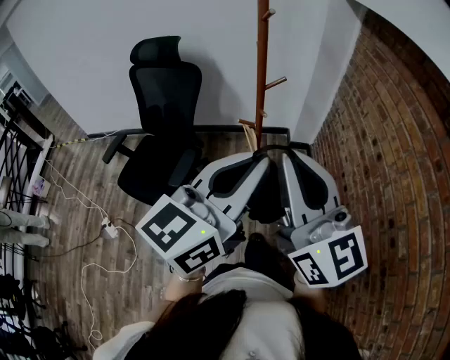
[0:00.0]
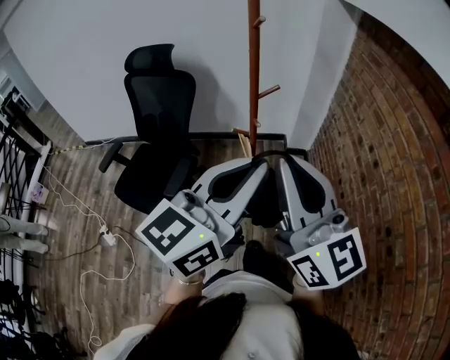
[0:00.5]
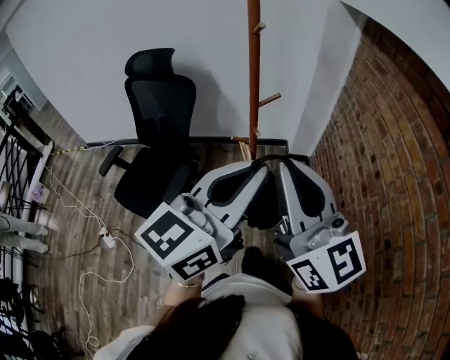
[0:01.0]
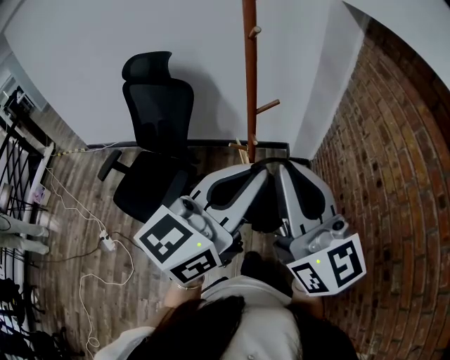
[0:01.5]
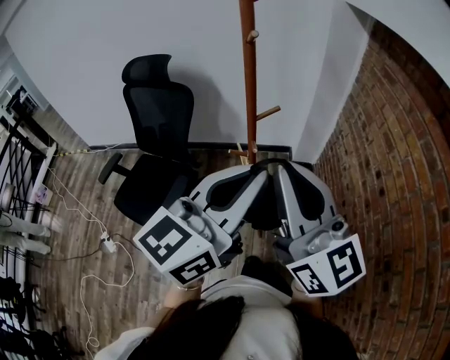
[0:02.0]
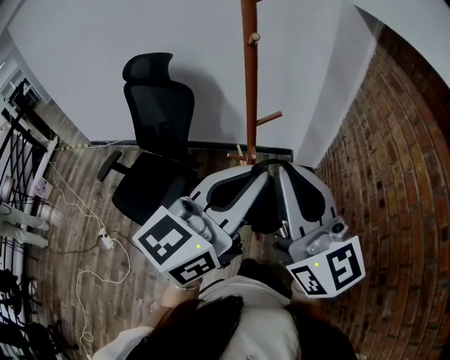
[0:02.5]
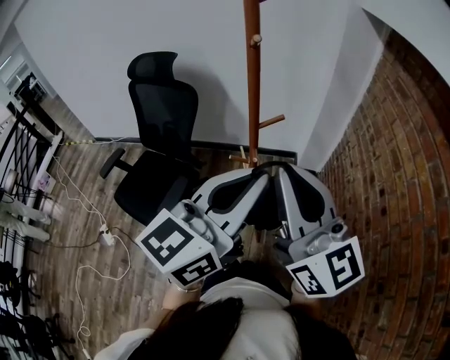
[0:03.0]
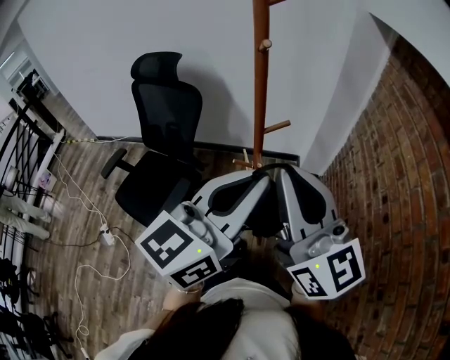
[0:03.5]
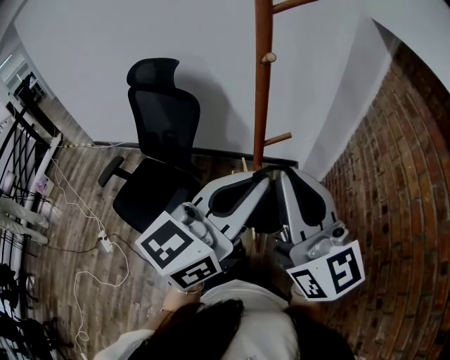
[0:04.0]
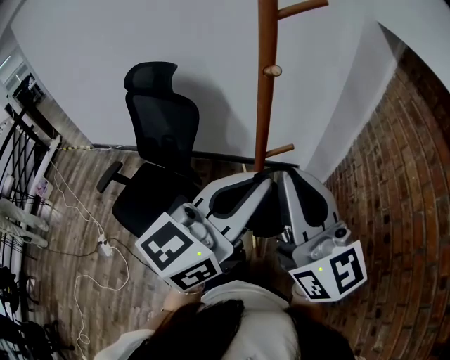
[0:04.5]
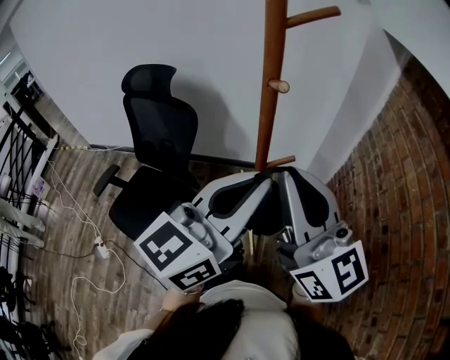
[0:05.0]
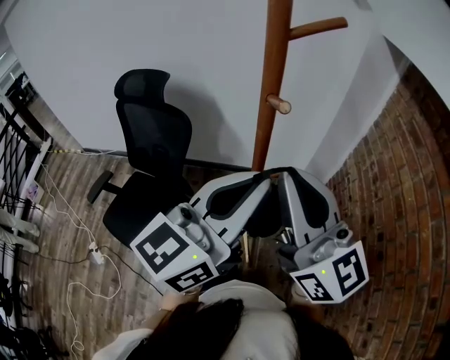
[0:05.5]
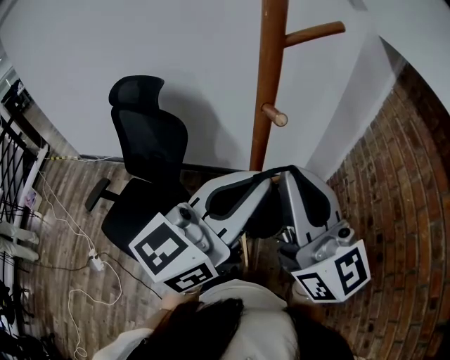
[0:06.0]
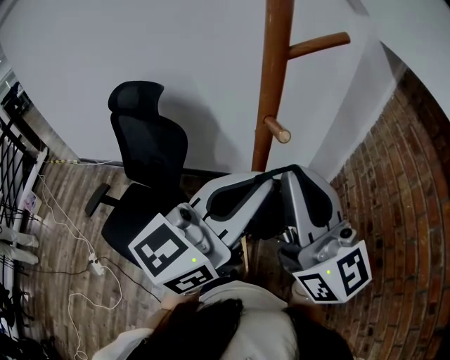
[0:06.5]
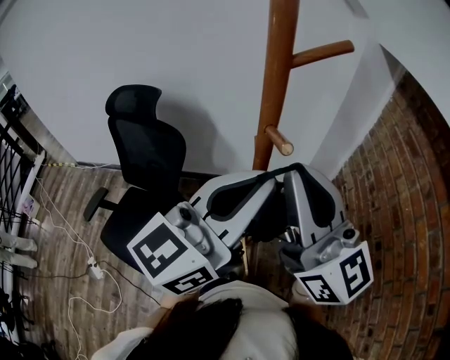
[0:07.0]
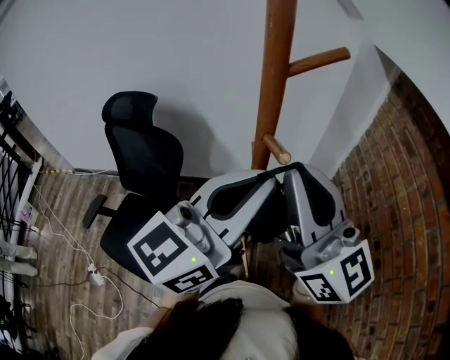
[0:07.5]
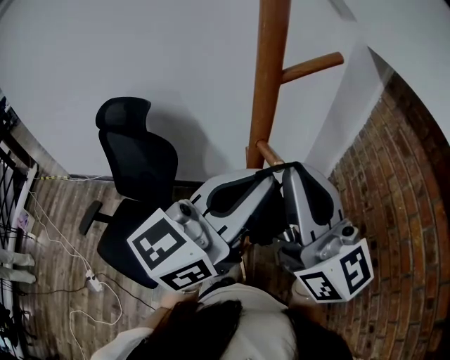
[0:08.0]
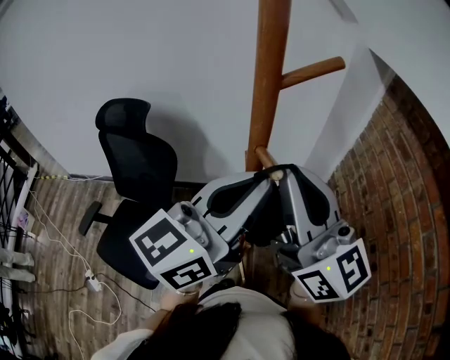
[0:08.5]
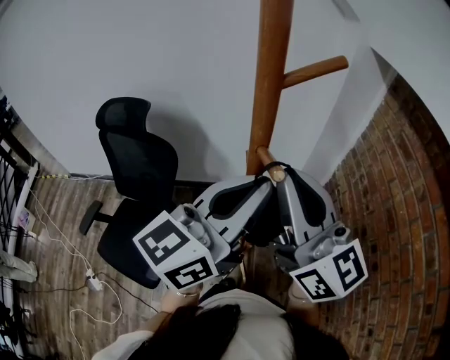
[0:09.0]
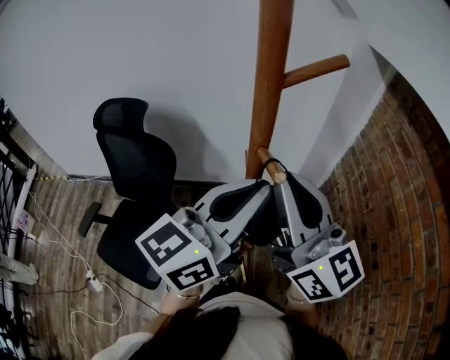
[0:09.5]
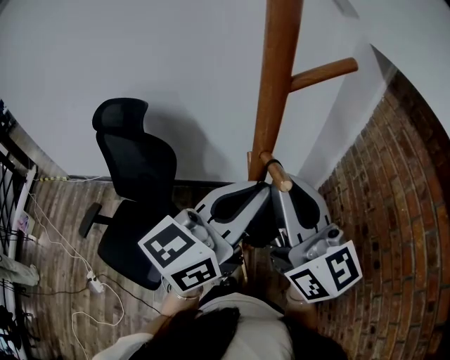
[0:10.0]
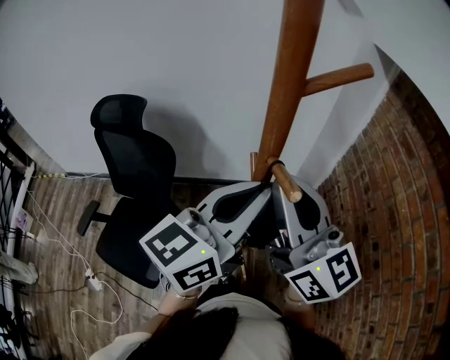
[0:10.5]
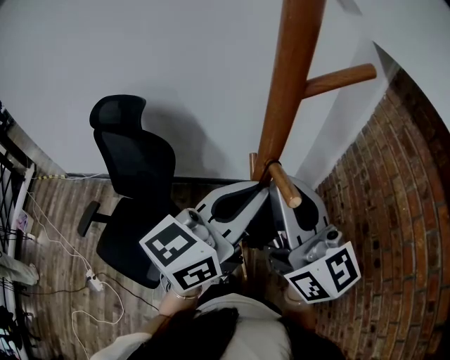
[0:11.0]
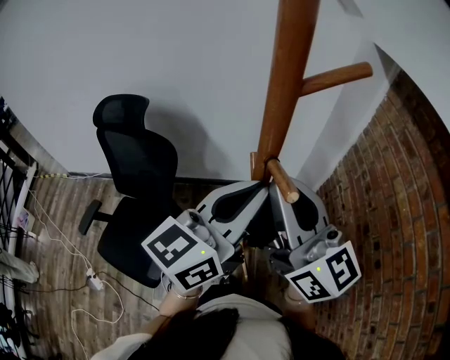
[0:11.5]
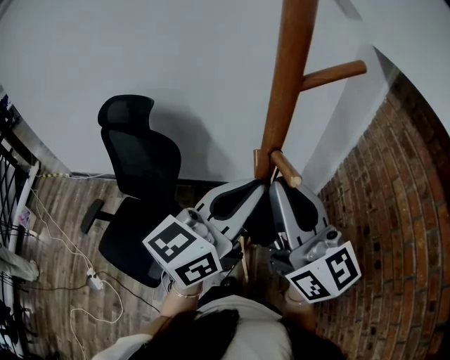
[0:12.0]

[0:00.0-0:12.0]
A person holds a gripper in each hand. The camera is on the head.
0:00.0 to 0:02.0: Both grippers move forward, some 10 cm.
0:02.0 to 0:04.0: The two grippers go about 10 cm forward.
0:04.0 to 0:06.0: Both grippers move forward, about 10 cm.
0:06.0 to 0:08.0: The left gripper ends up some 5 cm from where it was, while the right gripper changes place by roughly 5 cm.
0:08.0 to 0:10.0: The right gripper ends up roughly 5 cm from where it was. Meanwhile the left gripper shifts by some 5 cm.
0:10.0 to 0:12.0: There are only small adjustments of the grippers.

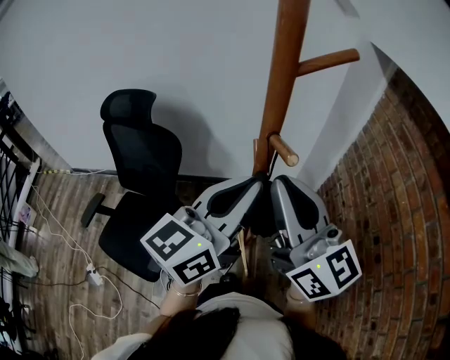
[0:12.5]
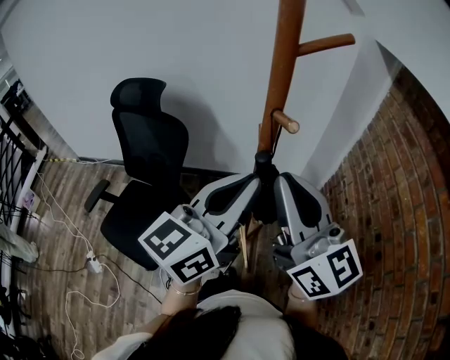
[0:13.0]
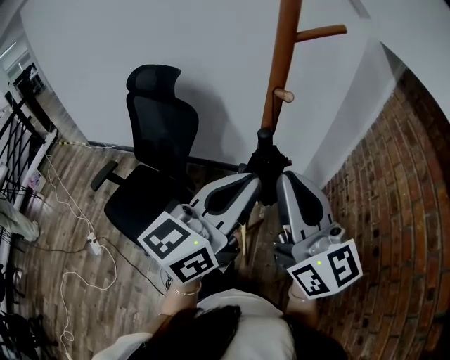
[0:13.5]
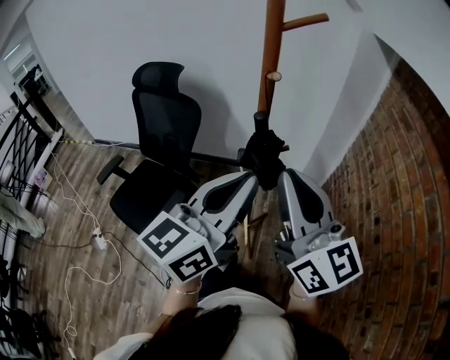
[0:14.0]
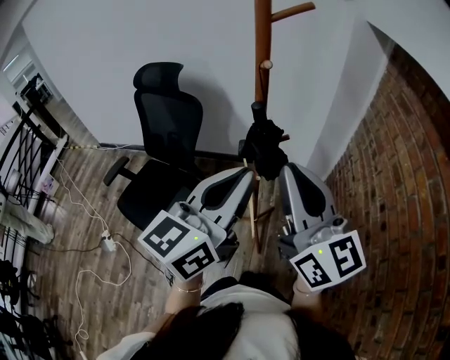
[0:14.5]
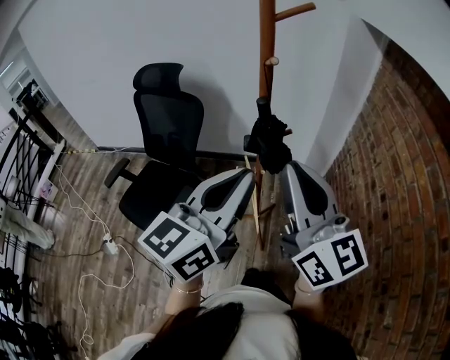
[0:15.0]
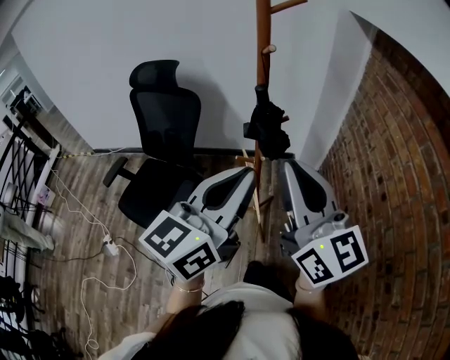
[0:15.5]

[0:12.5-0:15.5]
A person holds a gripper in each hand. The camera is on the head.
0:12.5 to 0:14.0: The two grippers go about 15 cm backward.
0:14.0 to 0:15.5: Both grippers move backward, approximately 10 cm.

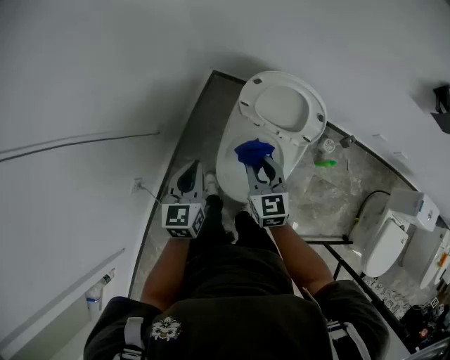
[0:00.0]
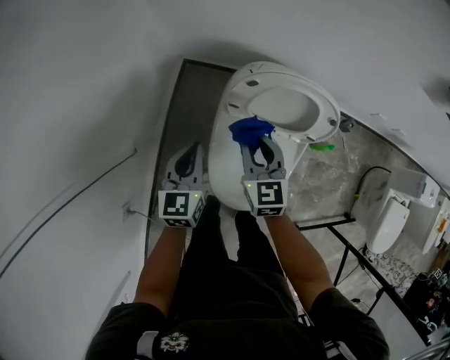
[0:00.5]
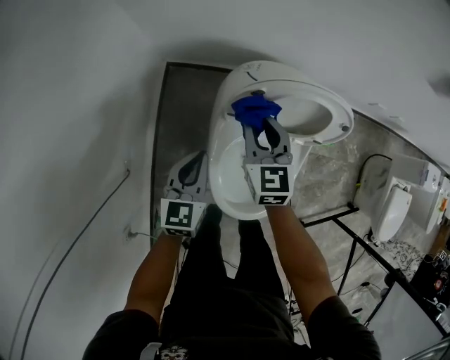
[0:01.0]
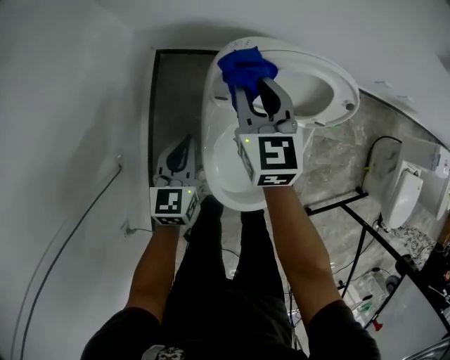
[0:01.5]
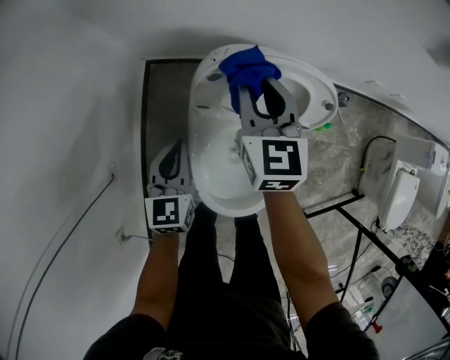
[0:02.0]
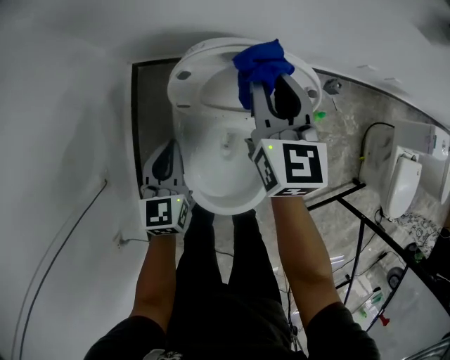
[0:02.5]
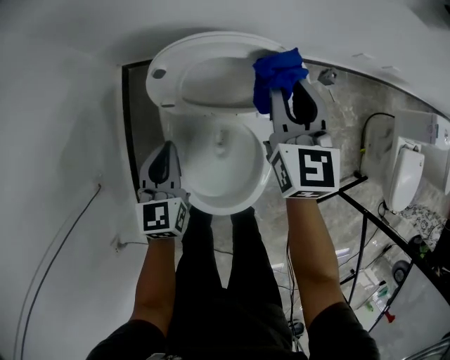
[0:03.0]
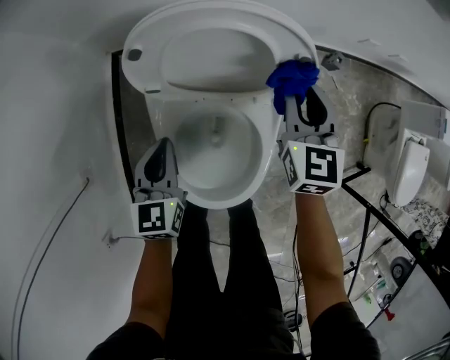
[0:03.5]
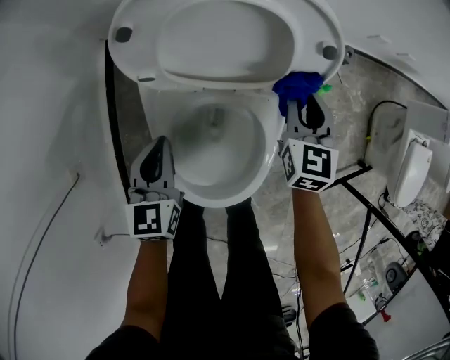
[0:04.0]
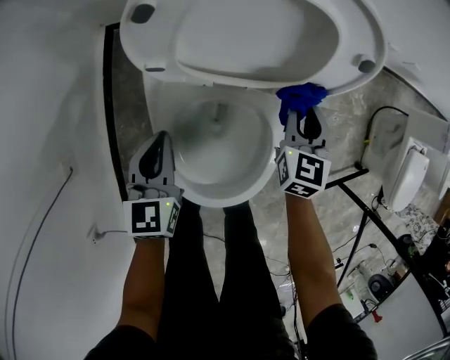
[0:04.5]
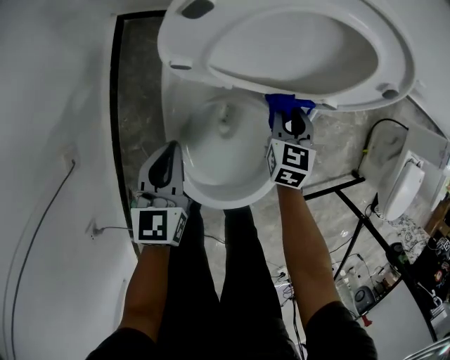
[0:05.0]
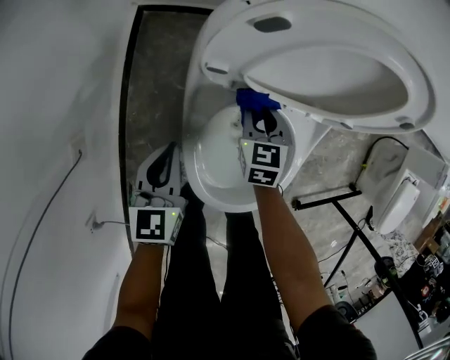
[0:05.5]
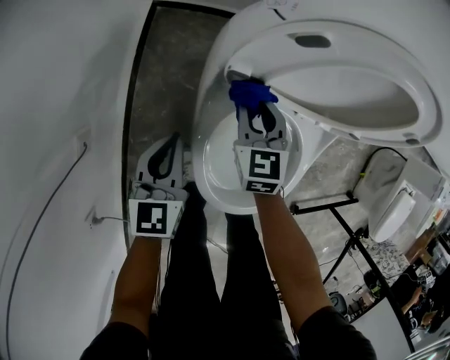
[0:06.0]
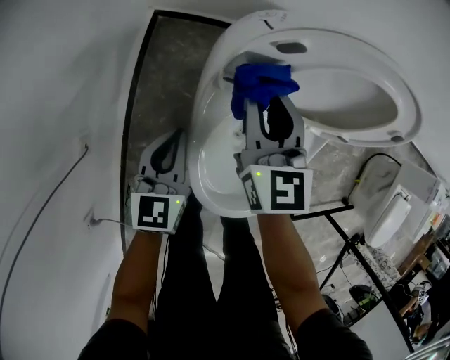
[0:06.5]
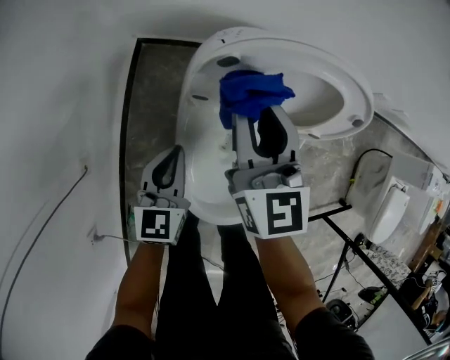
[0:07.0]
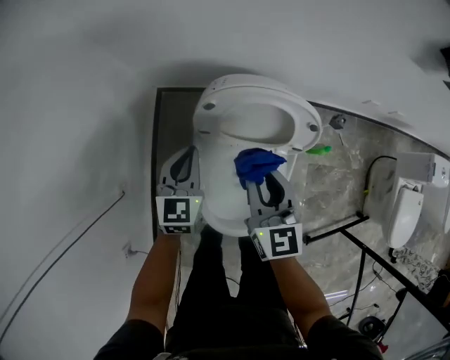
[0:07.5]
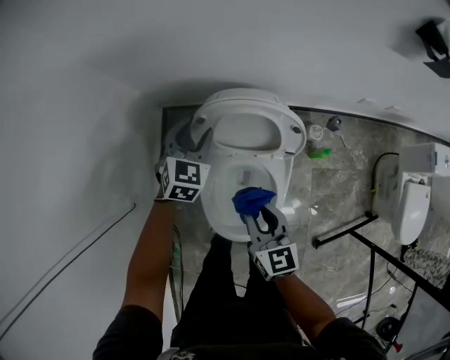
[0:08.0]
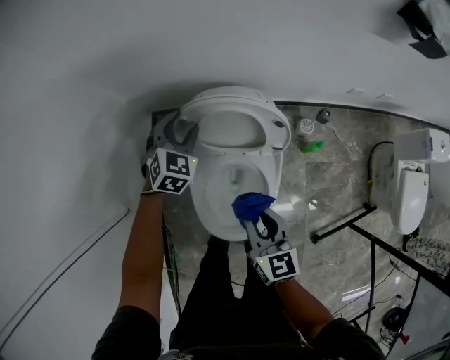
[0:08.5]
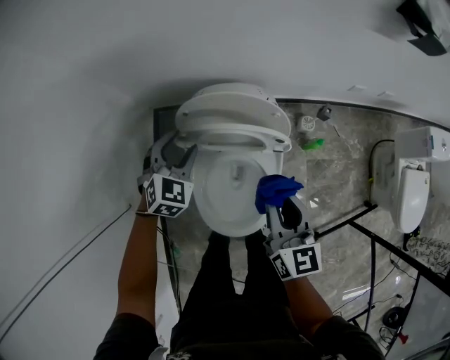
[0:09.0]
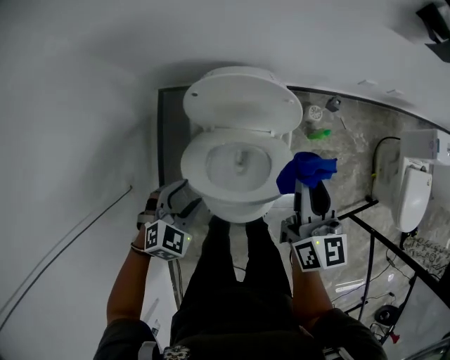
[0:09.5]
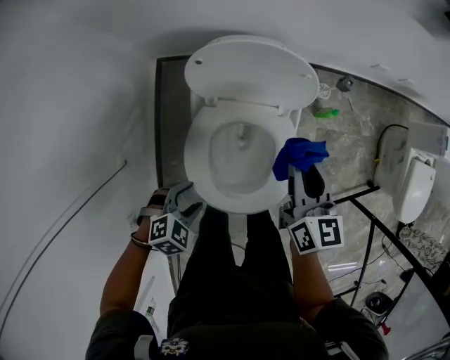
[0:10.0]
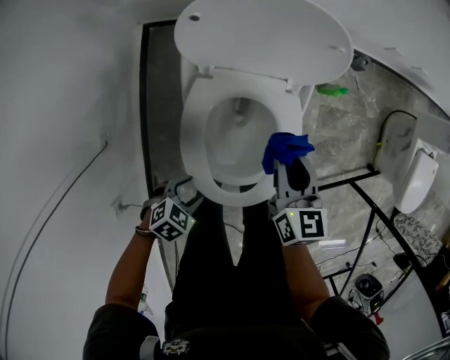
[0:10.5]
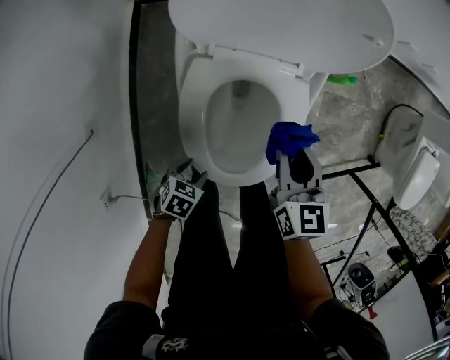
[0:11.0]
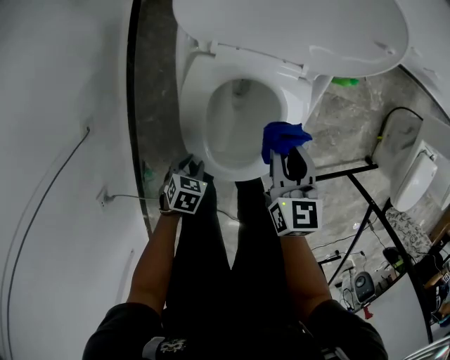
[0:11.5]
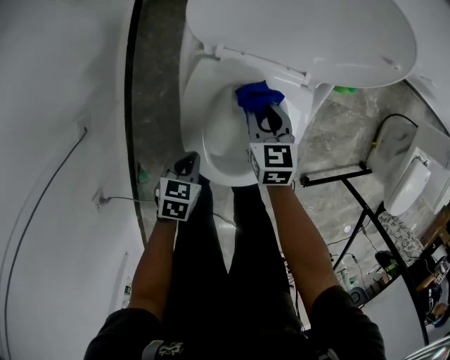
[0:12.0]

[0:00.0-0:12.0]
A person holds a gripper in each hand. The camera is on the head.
0:00.0 to 0:02.0: The right gripper shifts roughly 25 cm forward, and changes its angle by roughly 20 degrees, while the left gripper goes some 25 cm forward and downward.
0:02.0 to 0:04.0: The left gripper heads downward and to the right, covering about 10 cm; the right gripper is displaced to the right and downward by approximately 30 cm.
0:04.0 to 0:06.0: The left gripper moves to the left, approximately 10 cm, while the right gripper travels to the left by roughly 25 cm, and changes its angle by some 20 degrees.
0:06.0 to 0:08.0: The right gripper travels upward and backward by some 30 cm, and changes its angle by roughly 20 degrees. Meanwhile the left gripper shifts some 30 cm upward, to the right and forward, rotates some 40 degrees, and opens.
0:08.0 to 0:10.0: The left gripper moves some 35 cm, and angles its fingers downward, by roughly 30 degrees. The right gripper goes upward and returns, some 10 cm each way.
0:10.0 to 0:12.0: Both grippers move downward, approximately 25 cm. The left gripper rotates around the line of its fingers by about 50 degrees, counterclockwise from behind, and closes its fingers. The right gripper changes its angle by about 30 degrees.
